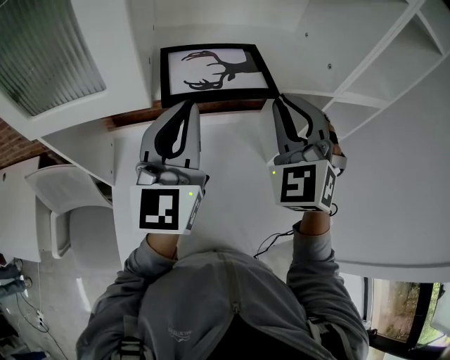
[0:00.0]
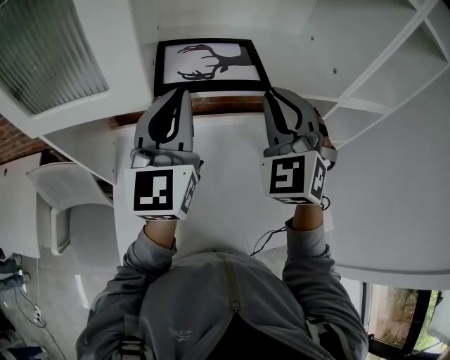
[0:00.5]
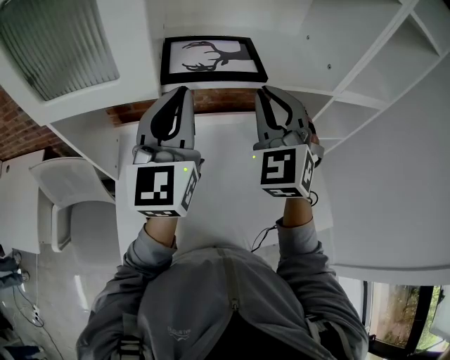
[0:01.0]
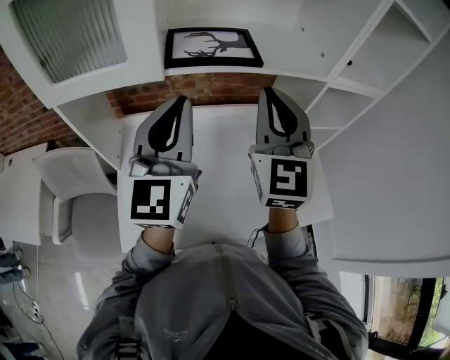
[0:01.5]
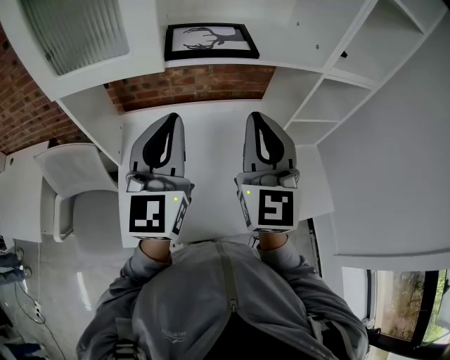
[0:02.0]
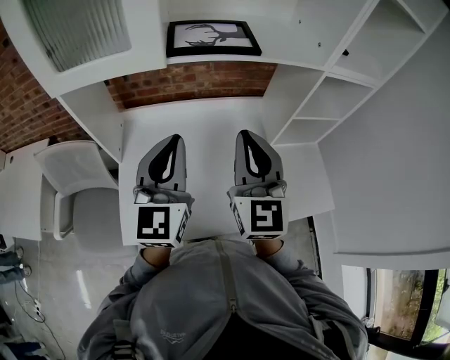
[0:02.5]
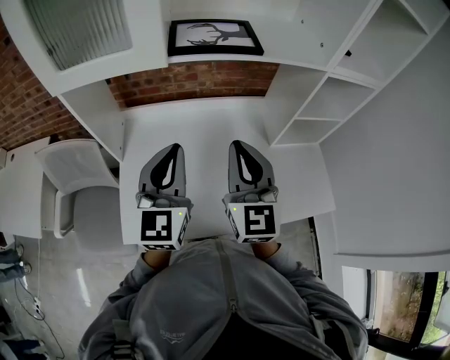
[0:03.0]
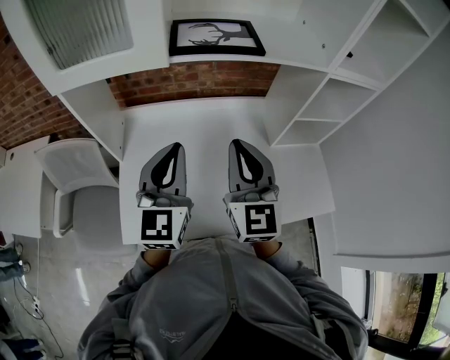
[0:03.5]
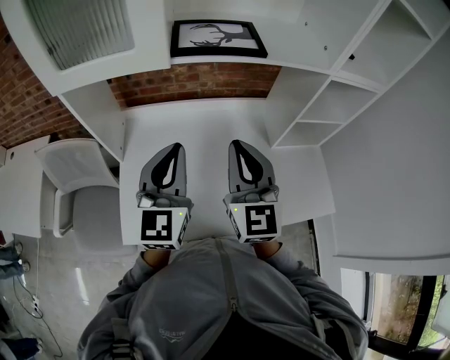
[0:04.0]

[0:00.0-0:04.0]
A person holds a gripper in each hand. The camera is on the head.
0:00.0 to 0:02.0: Both grippers move backward, some 15 cm. The right gripper rolls clockwise, seen from behind, by approximately 40 degrees.
0:02.0 to 0:04.0: The grippers both shift downward by some 10 cm.

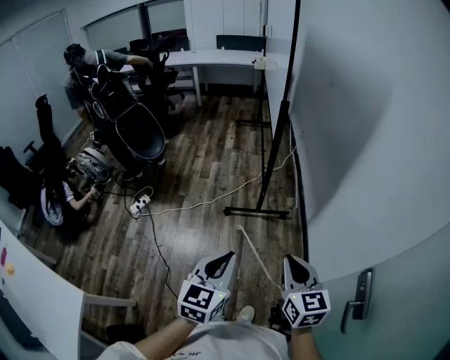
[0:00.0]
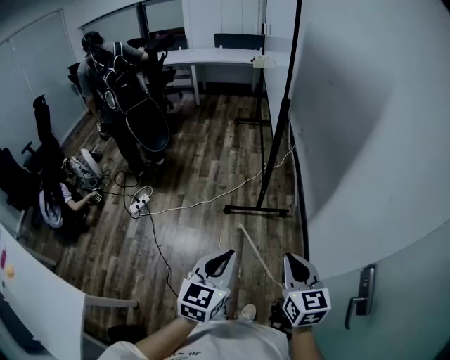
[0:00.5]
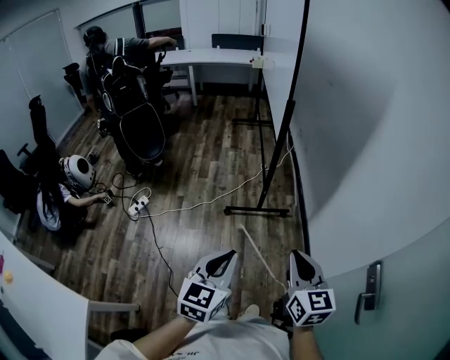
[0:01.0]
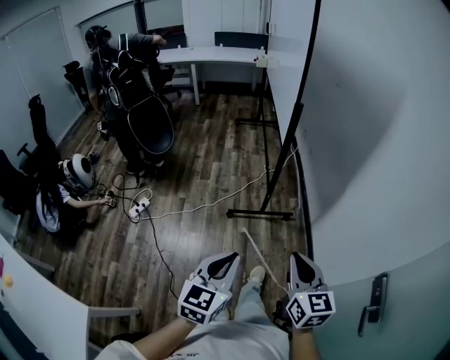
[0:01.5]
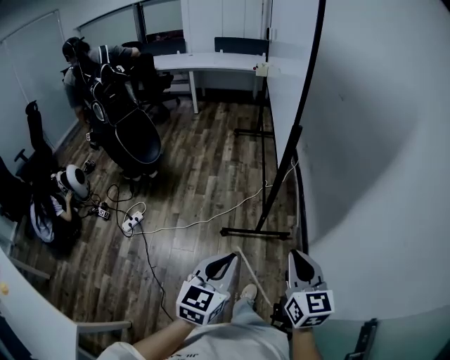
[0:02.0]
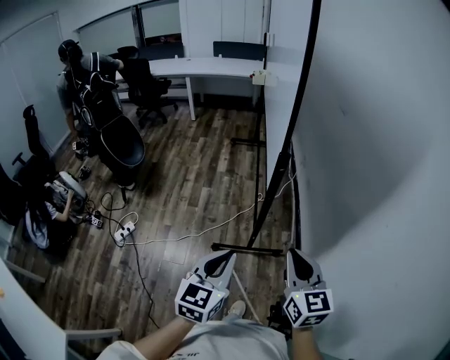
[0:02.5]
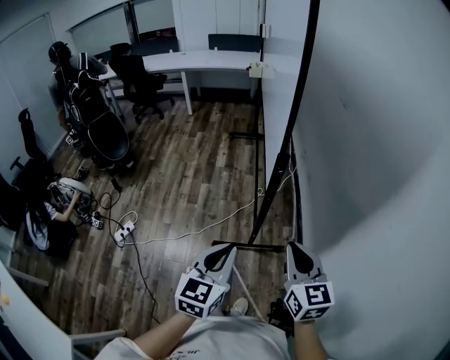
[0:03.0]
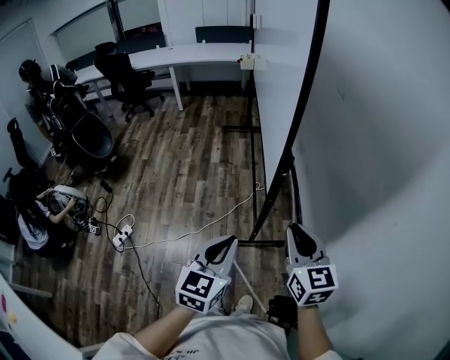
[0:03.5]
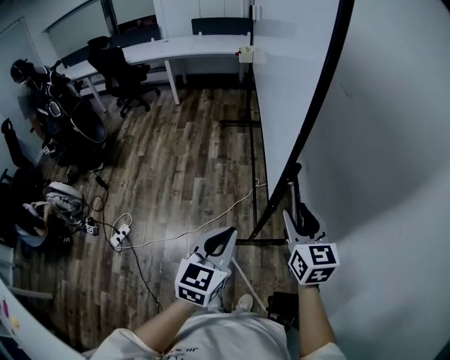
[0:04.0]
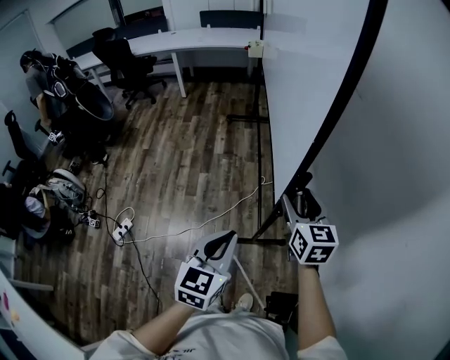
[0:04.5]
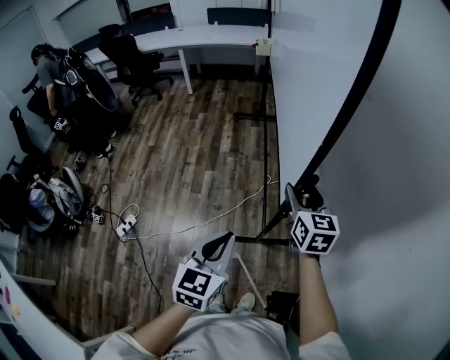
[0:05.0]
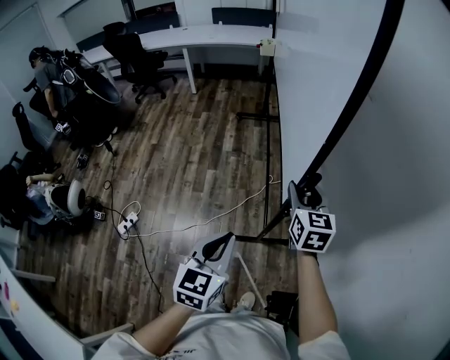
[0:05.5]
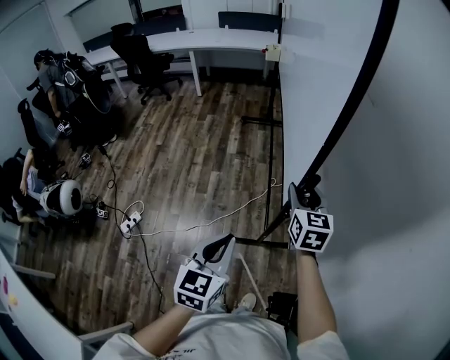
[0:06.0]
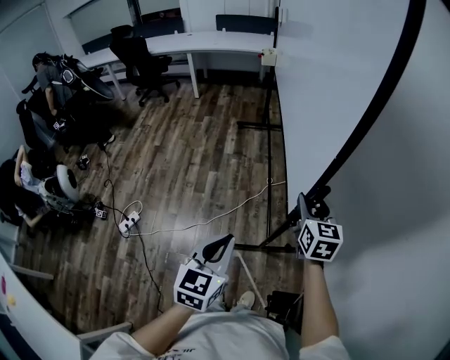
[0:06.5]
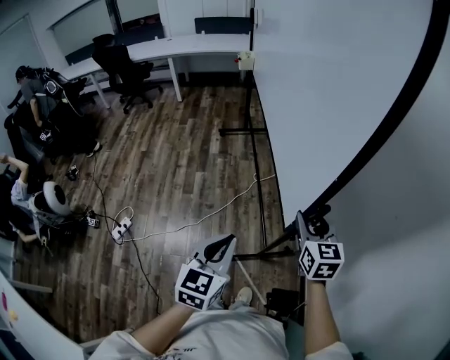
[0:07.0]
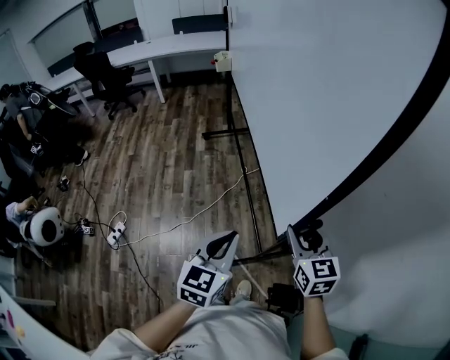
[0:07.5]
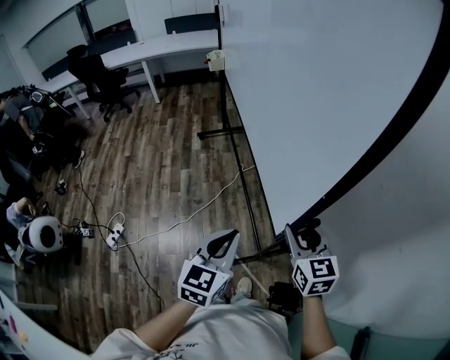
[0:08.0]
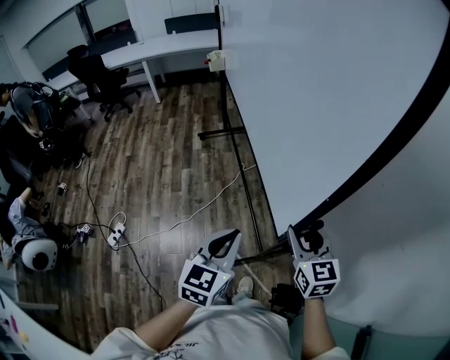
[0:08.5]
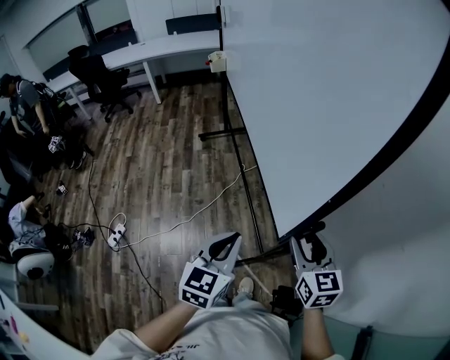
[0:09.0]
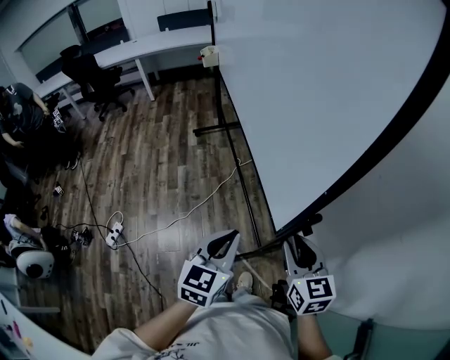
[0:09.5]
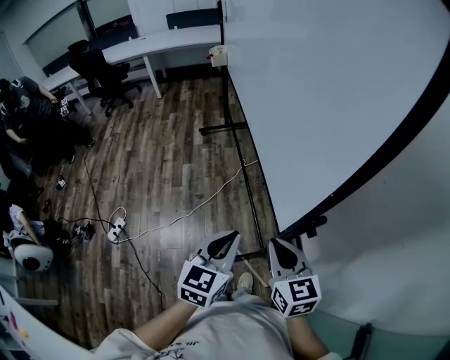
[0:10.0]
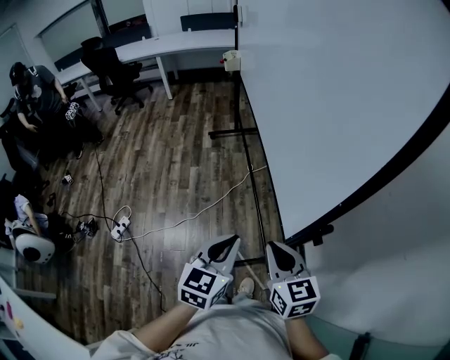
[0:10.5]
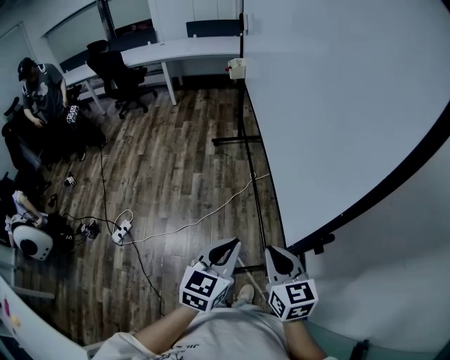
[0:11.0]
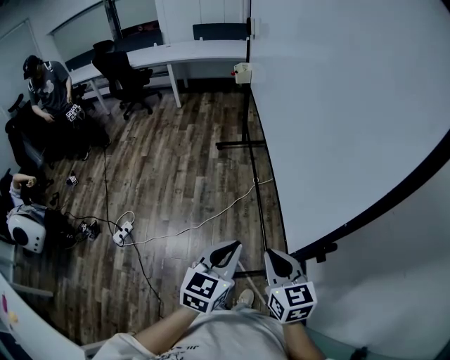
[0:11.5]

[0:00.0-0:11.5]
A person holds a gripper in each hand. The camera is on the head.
0:00.0 to 0:02.0: The two grippers go approximately 20 cm forward.
0:02.0 to 0:04.0: Both grippers travel together forward, some 30 cm. The right gripper opens.
0:04.0 to 0:06.0: The right gripper travels forward by approximately 10 cm.
0:06.0 to 0:07.5: The right gripper goes approximately 25 cm backward and to the right, while the left gripper is displaced to the right and backward by some 15 cm.
0:07.5 to 0:09.5: The right gripper travels backward by about 10 cm.
0:09.5 to 0:11.5: The right gripper moves to the left, about 10 cm, and closes its fingers.

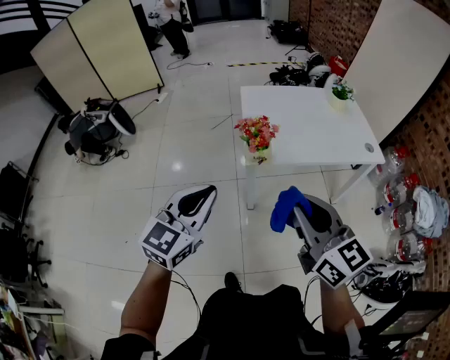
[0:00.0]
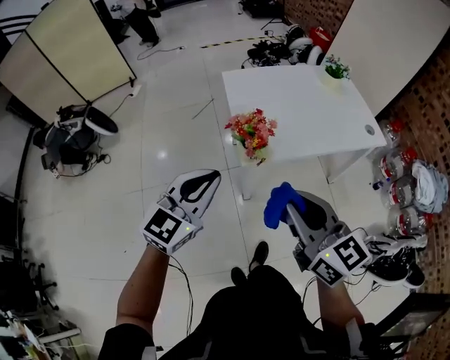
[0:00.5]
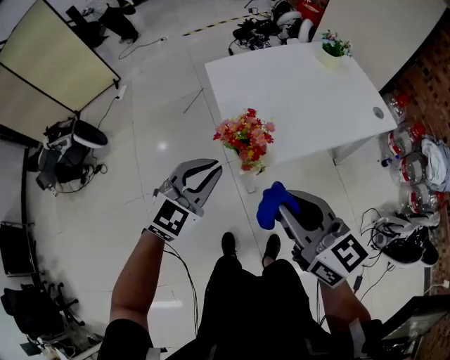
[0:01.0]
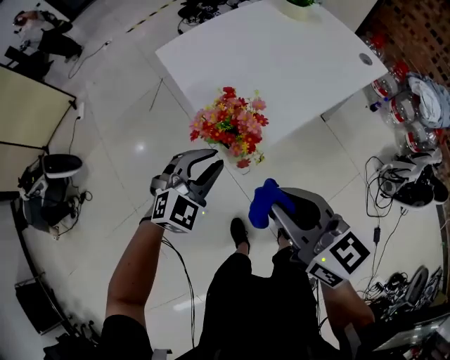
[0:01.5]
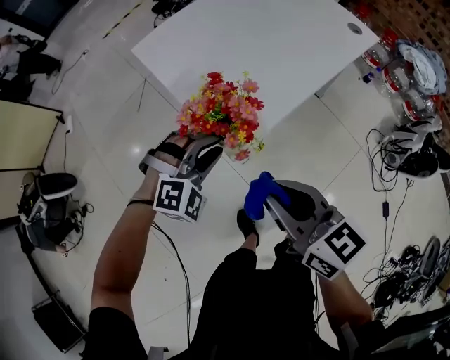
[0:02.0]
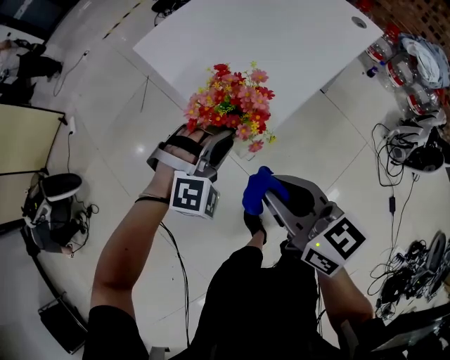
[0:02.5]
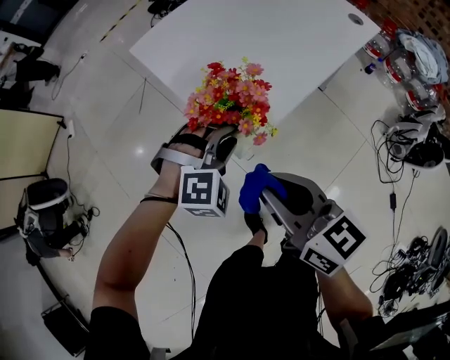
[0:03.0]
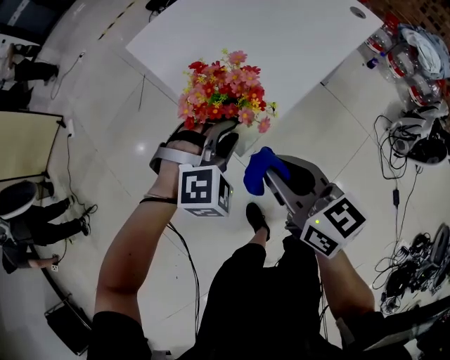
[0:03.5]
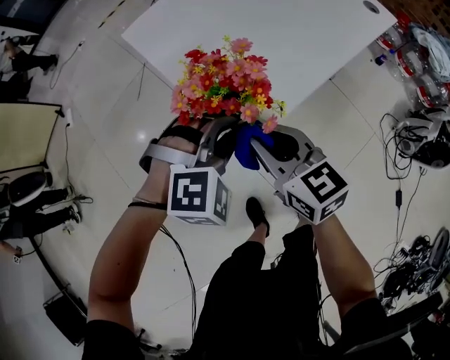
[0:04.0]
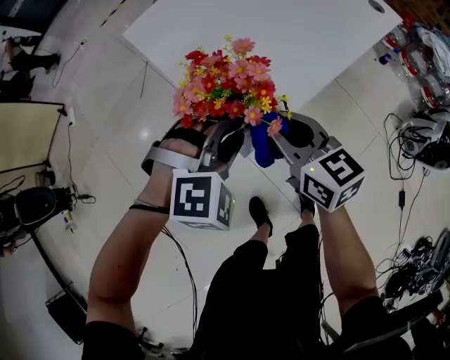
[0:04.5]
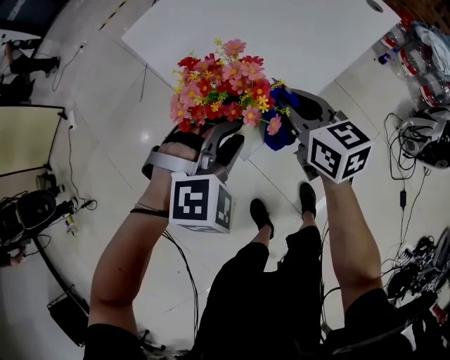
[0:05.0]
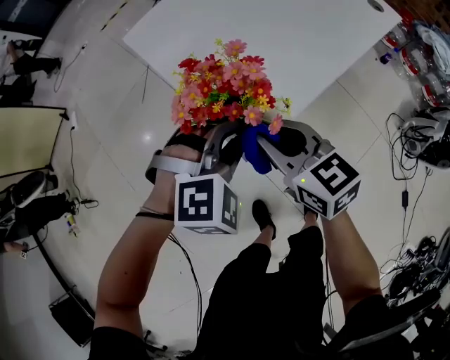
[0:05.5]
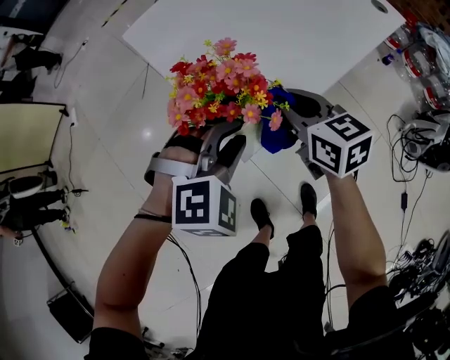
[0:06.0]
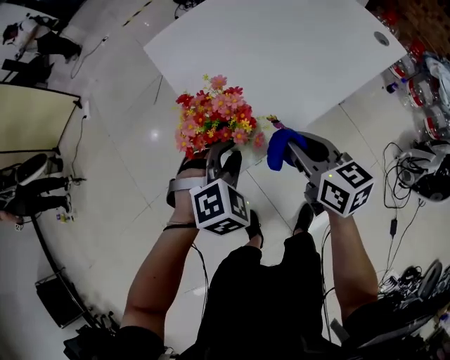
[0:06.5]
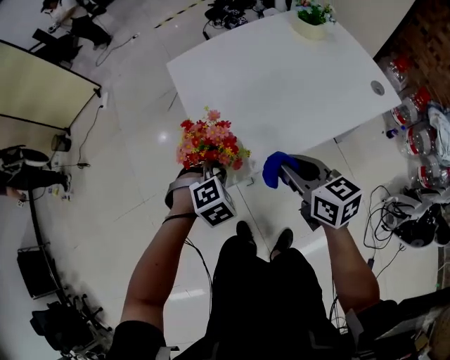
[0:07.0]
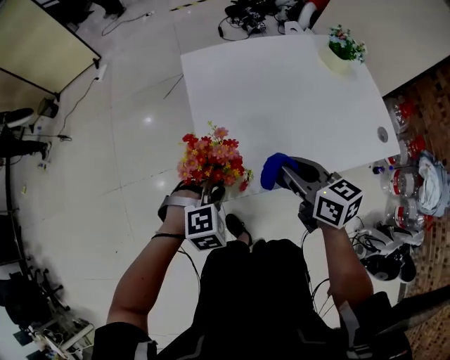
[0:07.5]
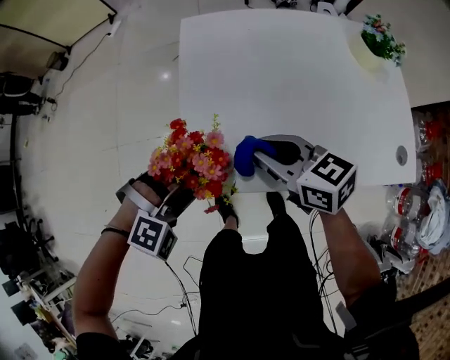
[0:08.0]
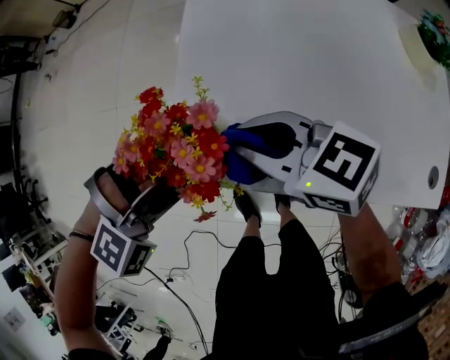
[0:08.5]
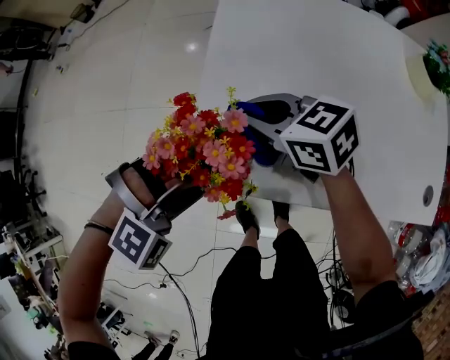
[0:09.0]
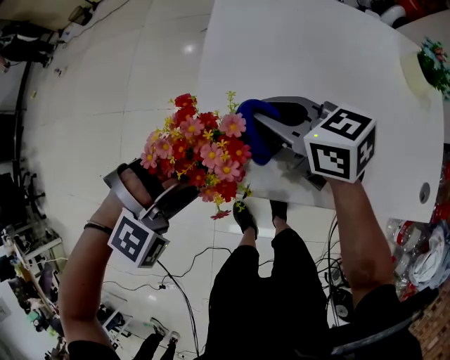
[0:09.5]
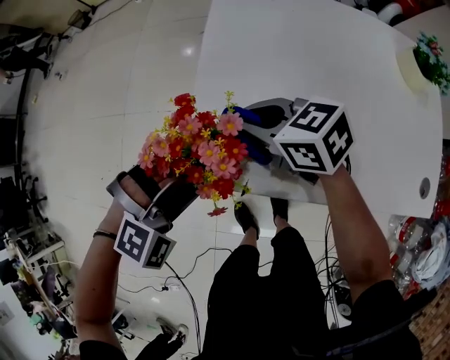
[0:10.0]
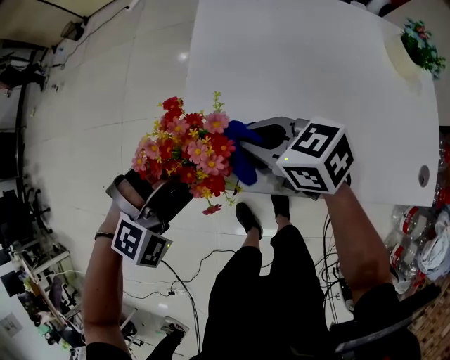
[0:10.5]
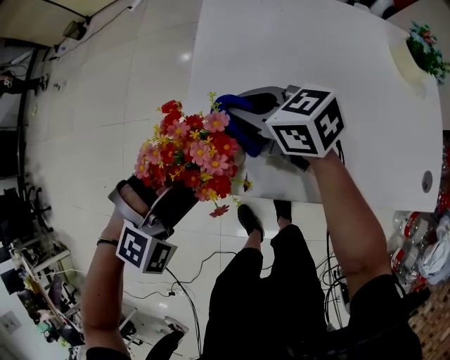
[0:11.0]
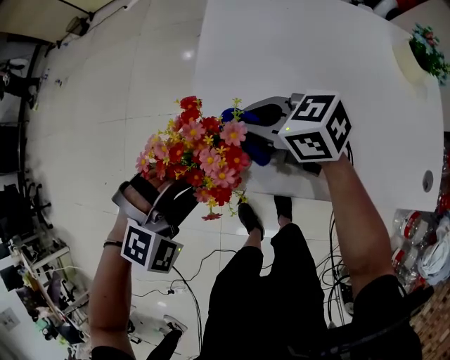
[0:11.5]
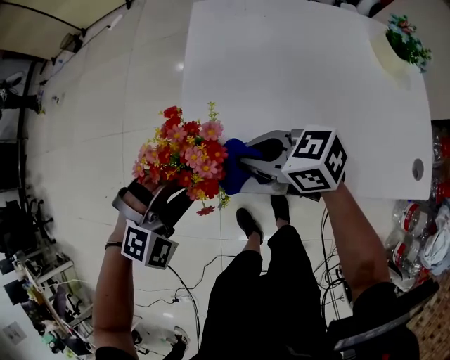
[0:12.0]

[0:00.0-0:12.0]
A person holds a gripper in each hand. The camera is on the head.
0:00.0 to 0:02.0: The left gripper moves about 40 cm, rotates around the line of its fingers by about 70 degrees, clockwise from behind, and opens up; the right gripper shifts by some 30 cm, and turns by approximately 30 degrees.
0:02.0 to 0:04.0: The right gripper shifts about 15 cm forward and downward.
0:04.0 to 0:06.0: The right gripper swings forward and backward, roughly 10 cm each way, with 2 reversals.
0:06.0 to 0:08.0: The right gripper shifts approximately 5 cm upward, and swivels about 50 degrees.
0:08.0 to 0:10.0: The right gripper goes about 10 cm to the left, forward and downward, and turns by some 20 degrees.
0:10.0 to 0:12.0: The right gripper moves forward and backward over approximately 10 cm, changing direction 2 times.
